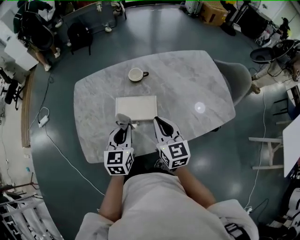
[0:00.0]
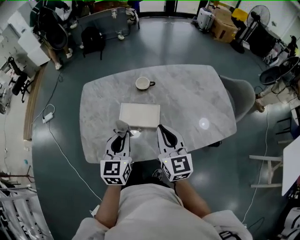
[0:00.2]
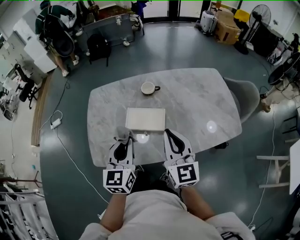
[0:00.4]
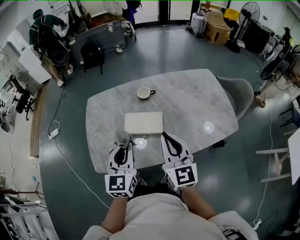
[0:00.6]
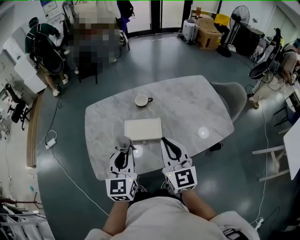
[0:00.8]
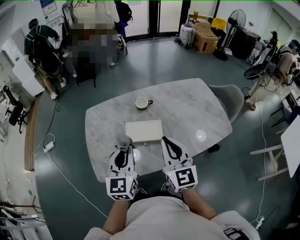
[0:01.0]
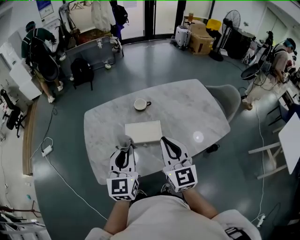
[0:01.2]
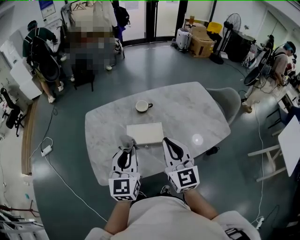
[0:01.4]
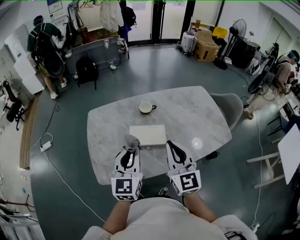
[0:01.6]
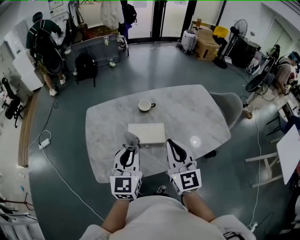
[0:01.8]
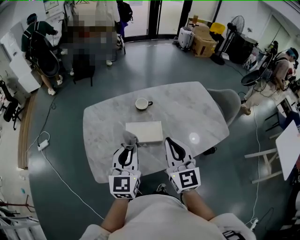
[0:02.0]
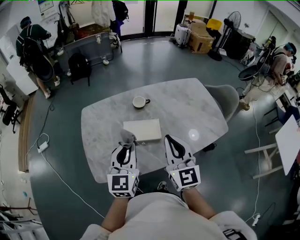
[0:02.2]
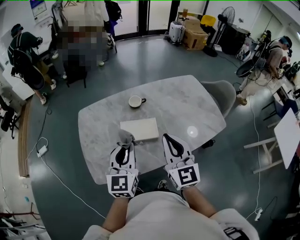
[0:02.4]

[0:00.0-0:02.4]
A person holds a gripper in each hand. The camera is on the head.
0:00.0 to 0:01.2: The left gripper goes some 15 cm upward and to the left. The right gripper heads upward, backward and to the left, covering approximately 15 cm.
0:01.2 to 0:02.4: The grippers move only a little.

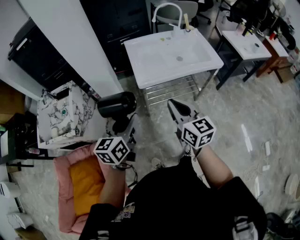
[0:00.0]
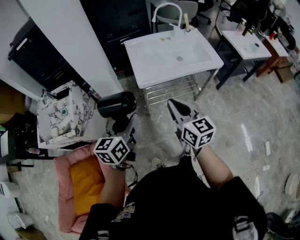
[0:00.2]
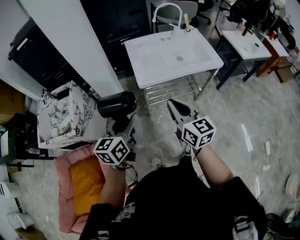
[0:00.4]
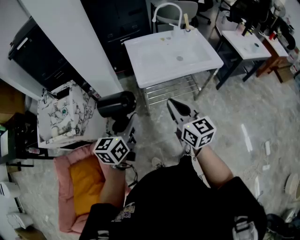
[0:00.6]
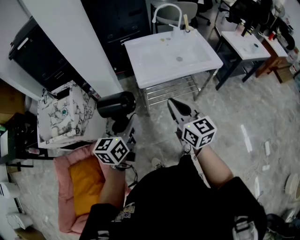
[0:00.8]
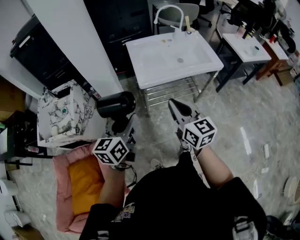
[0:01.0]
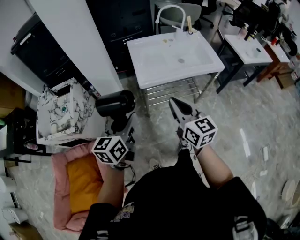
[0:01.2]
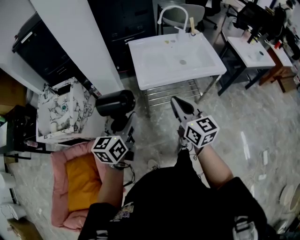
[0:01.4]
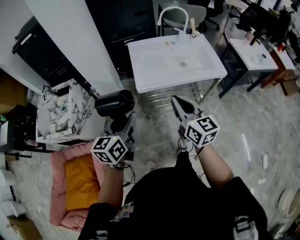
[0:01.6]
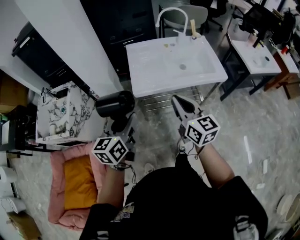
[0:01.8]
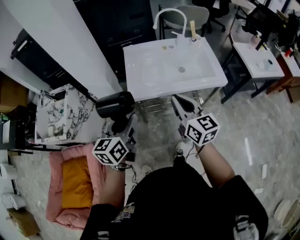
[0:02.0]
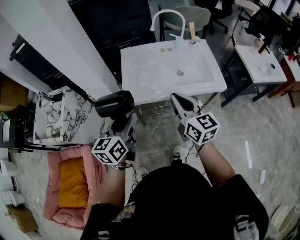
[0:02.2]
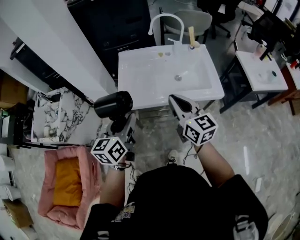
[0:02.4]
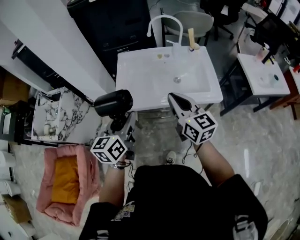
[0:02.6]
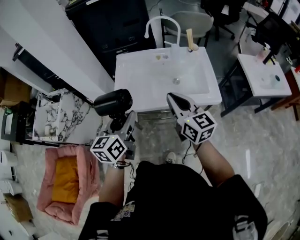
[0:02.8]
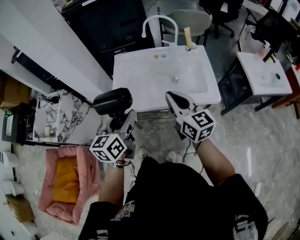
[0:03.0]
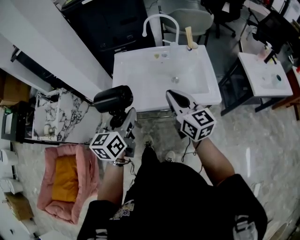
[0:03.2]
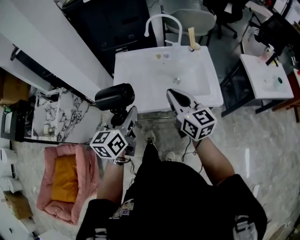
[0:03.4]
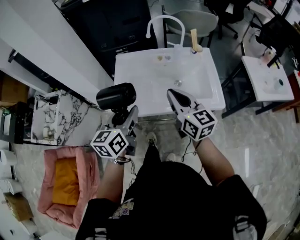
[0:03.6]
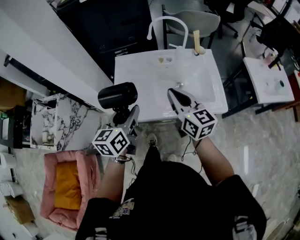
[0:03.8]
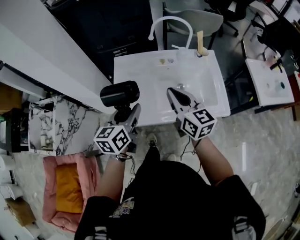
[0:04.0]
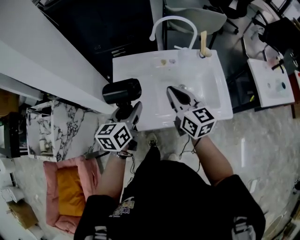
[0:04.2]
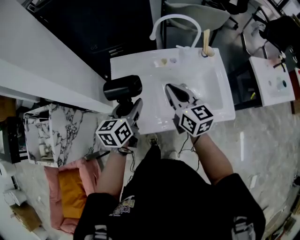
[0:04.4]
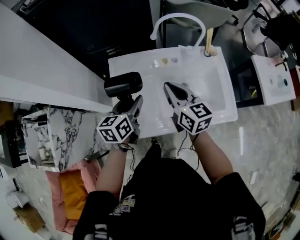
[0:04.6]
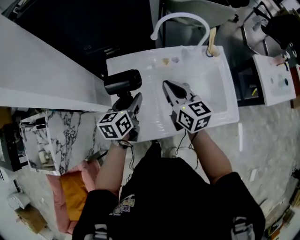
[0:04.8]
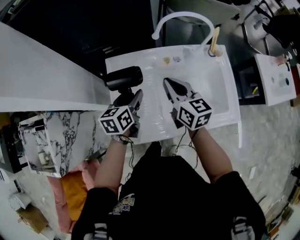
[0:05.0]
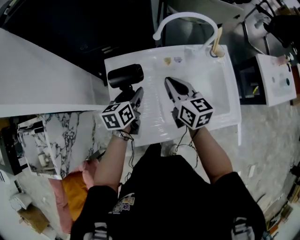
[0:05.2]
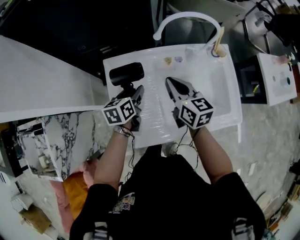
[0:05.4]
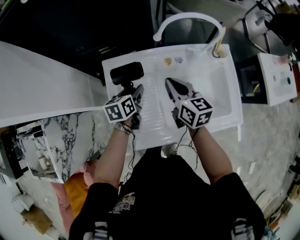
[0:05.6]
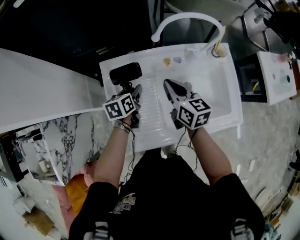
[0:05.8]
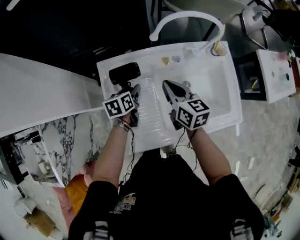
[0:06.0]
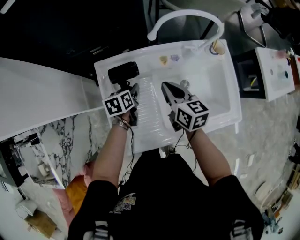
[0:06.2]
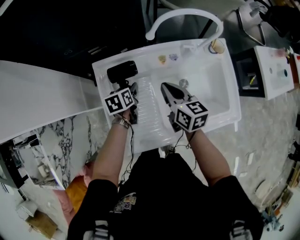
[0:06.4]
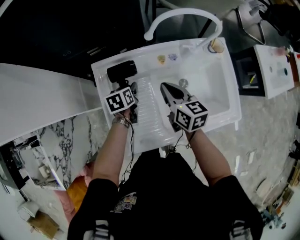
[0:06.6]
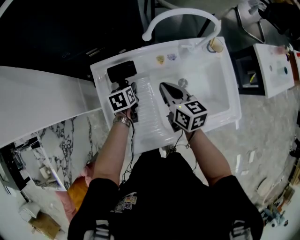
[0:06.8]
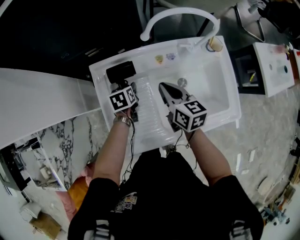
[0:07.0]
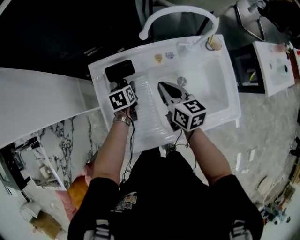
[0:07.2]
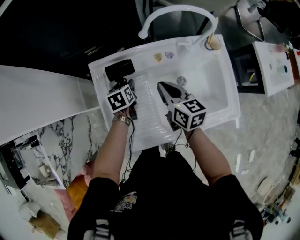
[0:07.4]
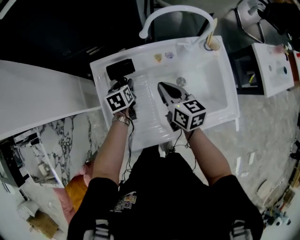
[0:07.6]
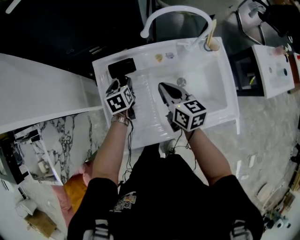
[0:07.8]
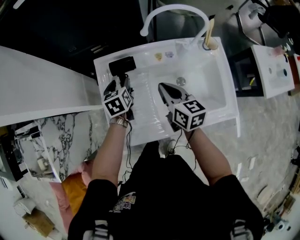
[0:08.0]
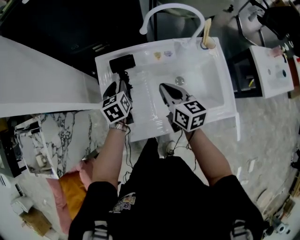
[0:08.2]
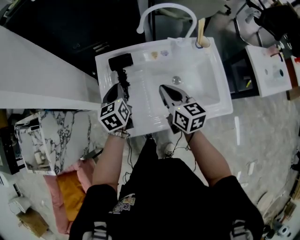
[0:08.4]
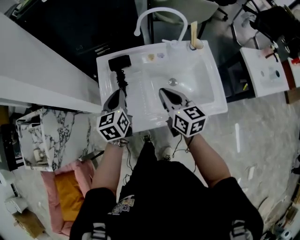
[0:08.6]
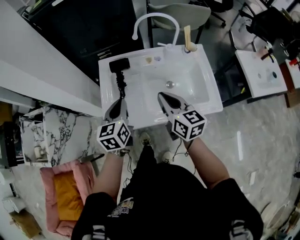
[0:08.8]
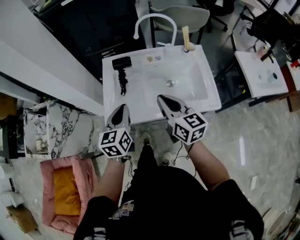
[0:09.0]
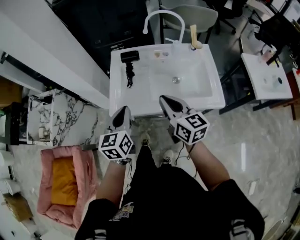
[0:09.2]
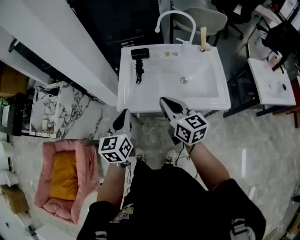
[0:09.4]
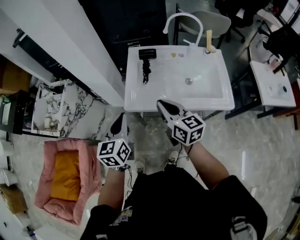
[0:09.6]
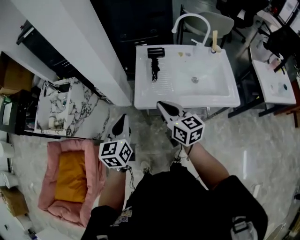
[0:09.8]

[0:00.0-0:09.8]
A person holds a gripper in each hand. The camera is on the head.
0:00.0 to 0:01.4: The grippers move only a little.
0:01.4 to 0:02.8: Both grippers move to the right and forward, roughly 30 cm.
0:02.8 to 0:04.2: The two grippers go some 20 cm forward.
0:04.2 to 0:05.6: Both grippers move forward and downward, some 25 cm. The left gripper swivels some 20 degrees.
0:05.6 to 0:07.0: The left gripper heads downward, covering approximately 10 cm.
0:07.0 to 0:08.4: The left gripper moves upward and backward, approximately 20 cm, swivels approximately 30 degrees, and closes up; the right gripper travels backward and upward by some 15 cm.
0:08.4 to 0:09.8: The grippers both shift backward and to the left by approximately 35 cm.

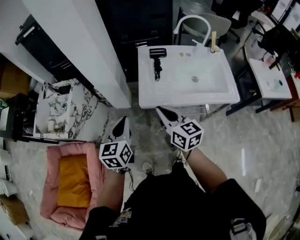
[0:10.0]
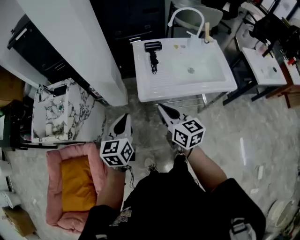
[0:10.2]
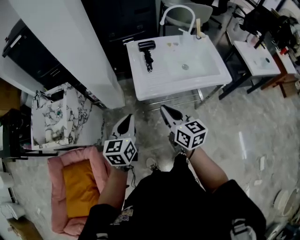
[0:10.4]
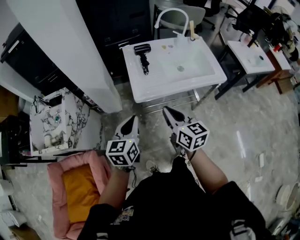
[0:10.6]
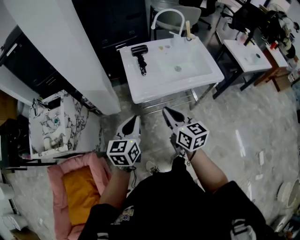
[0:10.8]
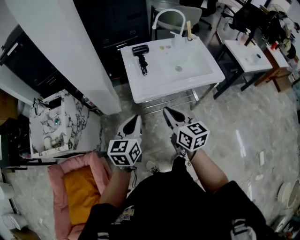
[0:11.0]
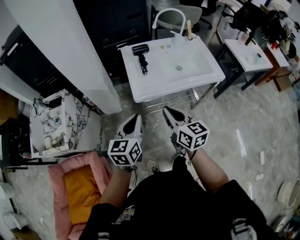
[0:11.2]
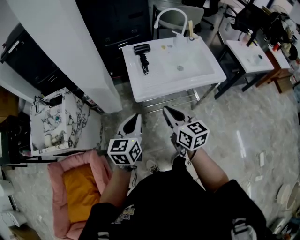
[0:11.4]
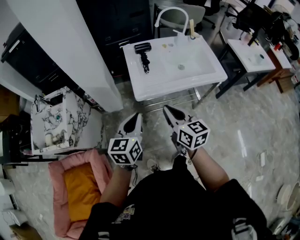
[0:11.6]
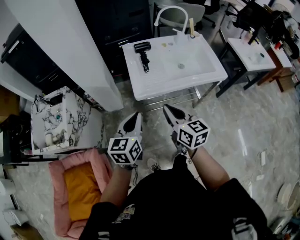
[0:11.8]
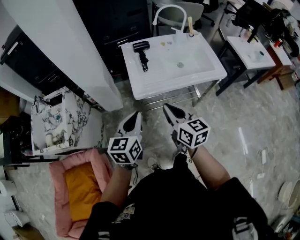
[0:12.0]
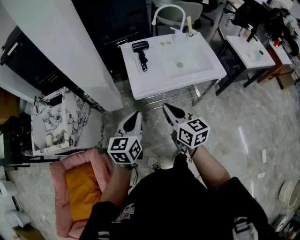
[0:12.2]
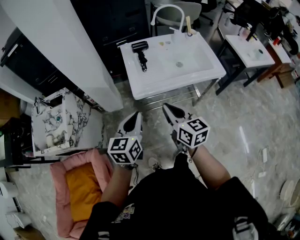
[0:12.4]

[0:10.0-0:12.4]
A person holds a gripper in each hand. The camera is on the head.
0:10.0 to 0:11.2: The left gripper is displaced backward by roughly 5 cm. Meanwhile the right gripper moves backward, approximately 10 cm.
0:11.2 to 0:12.4: The two grippers keep their place.

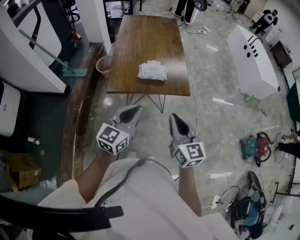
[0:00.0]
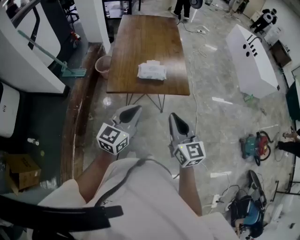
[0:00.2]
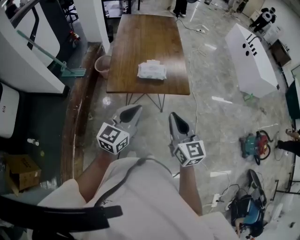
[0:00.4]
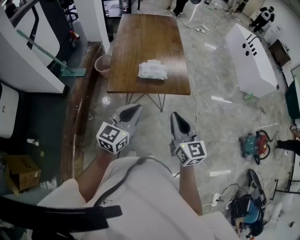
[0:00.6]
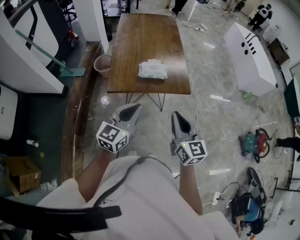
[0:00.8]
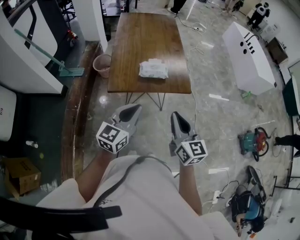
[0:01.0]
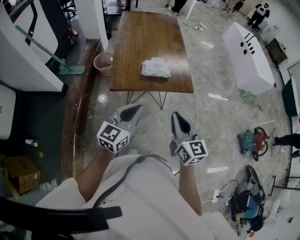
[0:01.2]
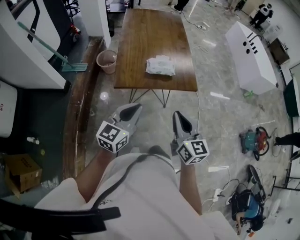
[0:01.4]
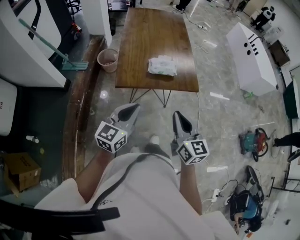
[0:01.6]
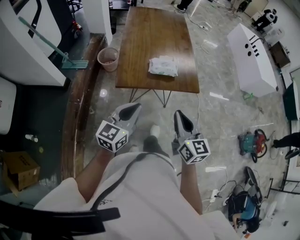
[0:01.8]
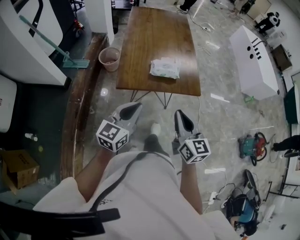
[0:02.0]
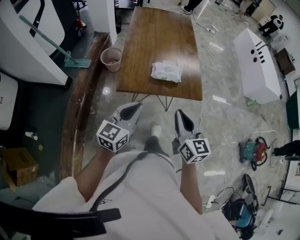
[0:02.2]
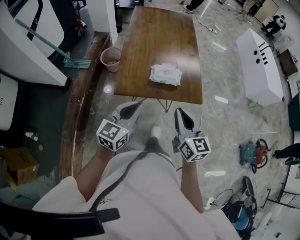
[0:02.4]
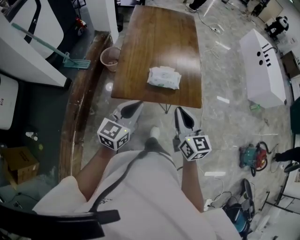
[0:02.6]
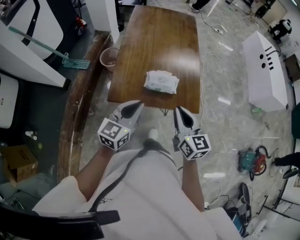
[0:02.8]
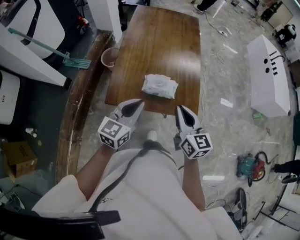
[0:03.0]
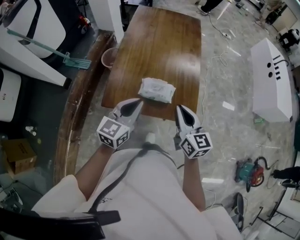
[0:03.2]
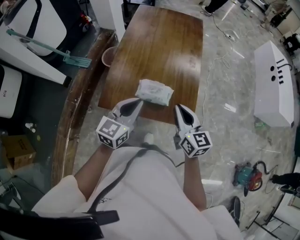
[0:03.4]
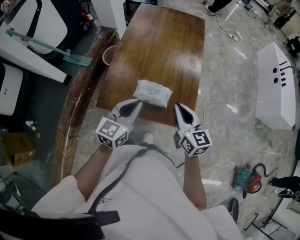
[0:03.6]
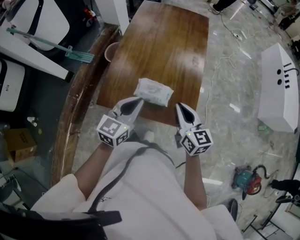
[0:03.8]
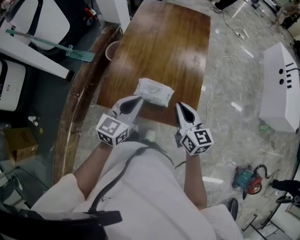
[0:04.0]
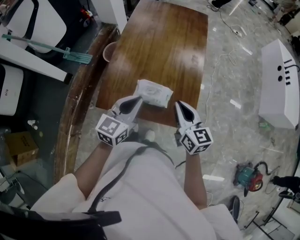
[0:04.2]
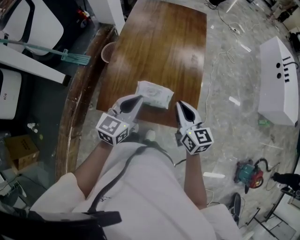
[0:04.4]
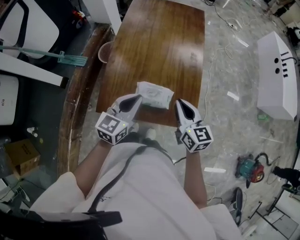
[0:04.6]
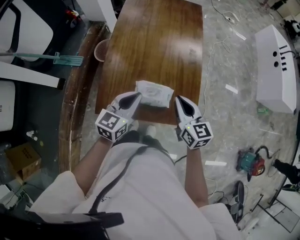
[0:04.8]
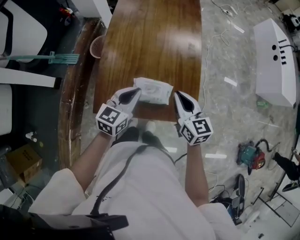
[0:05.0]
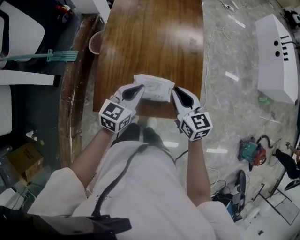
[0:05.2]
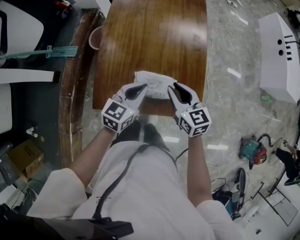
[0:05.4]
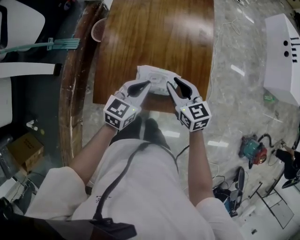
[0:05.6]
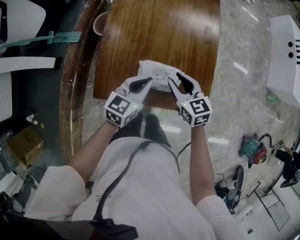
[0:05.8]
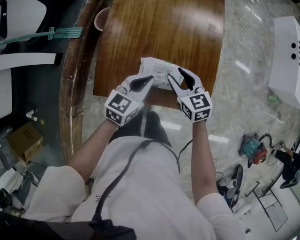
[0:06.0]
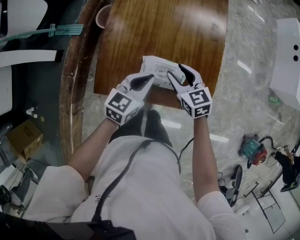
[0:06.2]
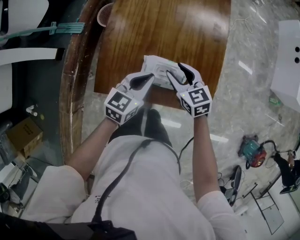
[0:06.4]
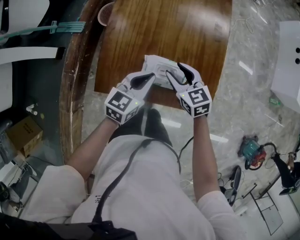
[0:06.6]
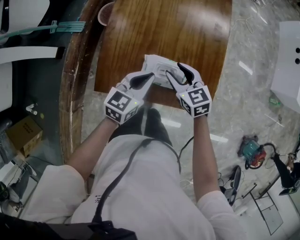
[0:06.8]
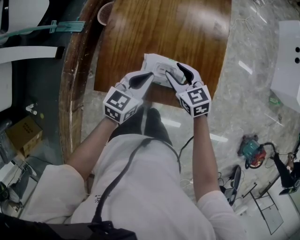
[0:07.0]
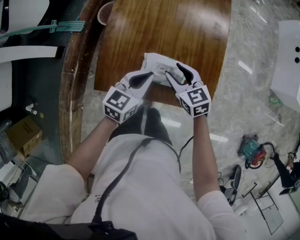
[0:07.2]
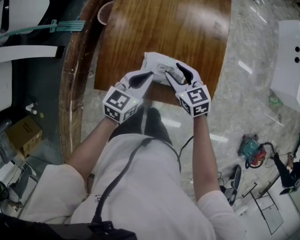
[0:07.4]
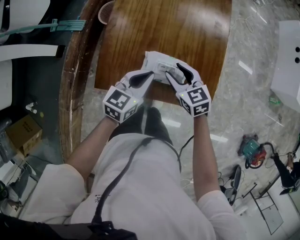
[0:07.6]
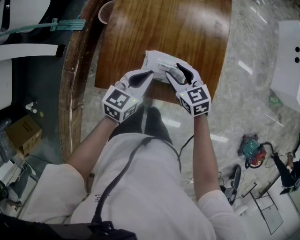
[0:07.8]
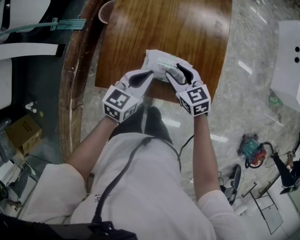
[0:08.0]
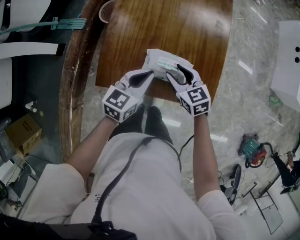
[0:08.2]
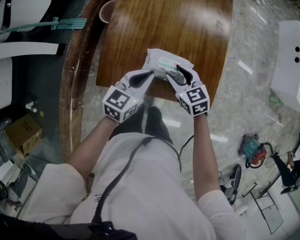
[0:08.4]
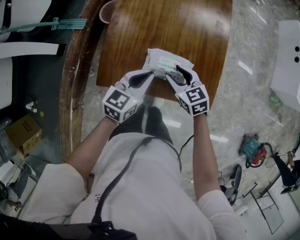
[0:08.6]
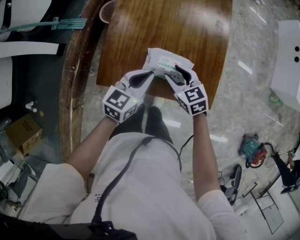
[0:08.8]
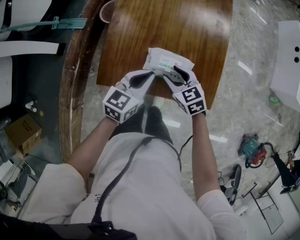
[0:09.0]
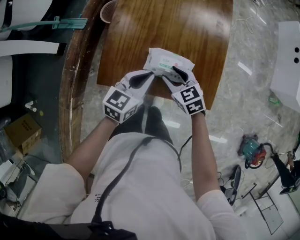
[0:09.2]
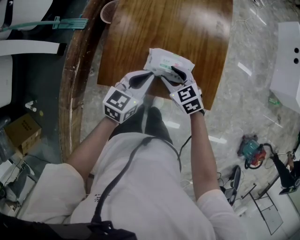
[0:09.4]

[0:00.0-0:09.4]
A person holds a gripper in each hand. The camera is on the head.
0:00.0 to 0:01.6: The two grippers go approximately 10 cm to the left.
0:01.6 to 0:03.2: Both grippers move forward, some 25 cm.
0:03.2 to 0:04.8: The right gripper heads forward, covering roughly 10 cm. Meanwhile the left gripper shifts approximately 10 cm forward and downward.
0:04.8 to 0:06.2: The two grippers go some 10 cm downward. The right gripper changes its angle by approximately 20 degrees, and opens its fingers.
0:06.2 to 0:07.8: The grippers make only small movements.
0:07.8 to 0:09.4: The right gripper moves approximately 5 cm.
